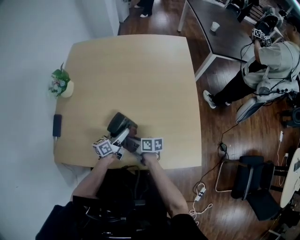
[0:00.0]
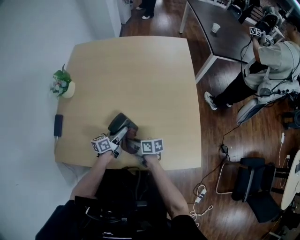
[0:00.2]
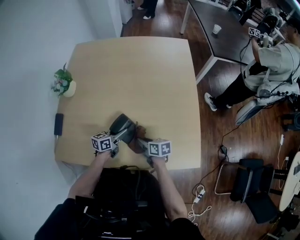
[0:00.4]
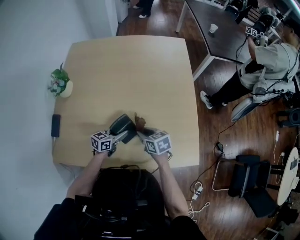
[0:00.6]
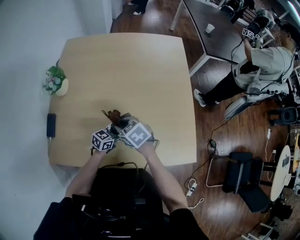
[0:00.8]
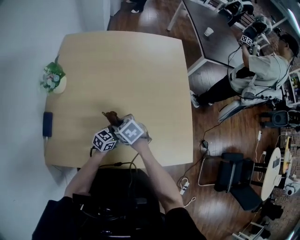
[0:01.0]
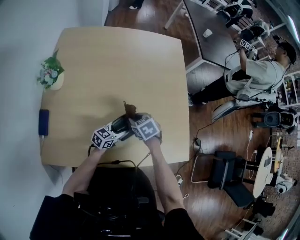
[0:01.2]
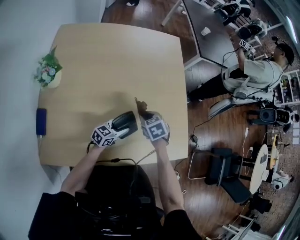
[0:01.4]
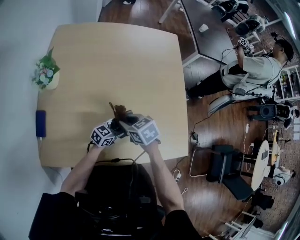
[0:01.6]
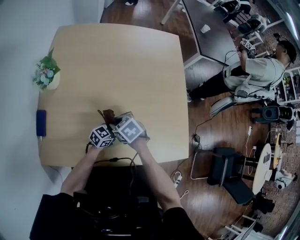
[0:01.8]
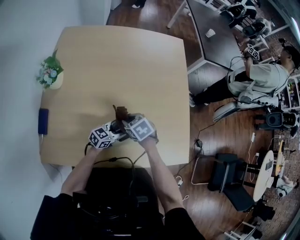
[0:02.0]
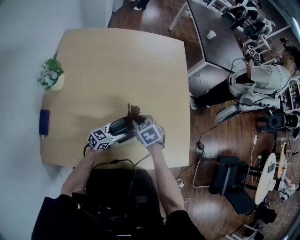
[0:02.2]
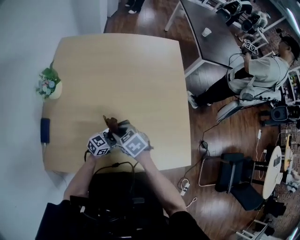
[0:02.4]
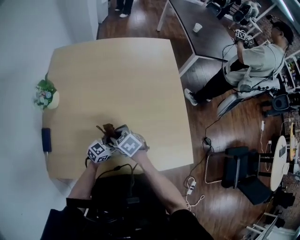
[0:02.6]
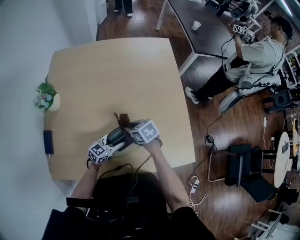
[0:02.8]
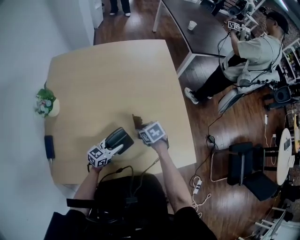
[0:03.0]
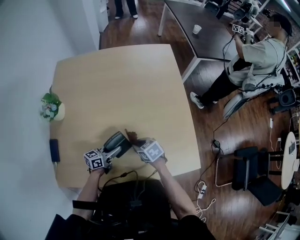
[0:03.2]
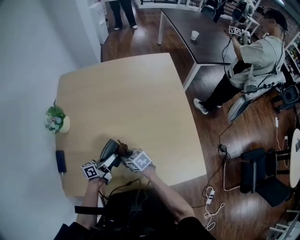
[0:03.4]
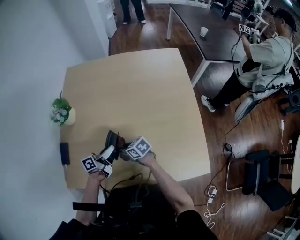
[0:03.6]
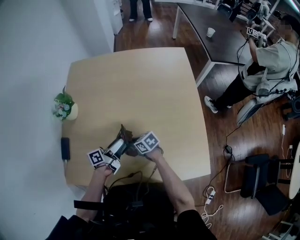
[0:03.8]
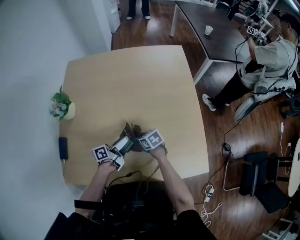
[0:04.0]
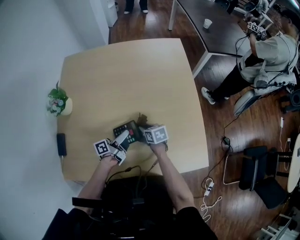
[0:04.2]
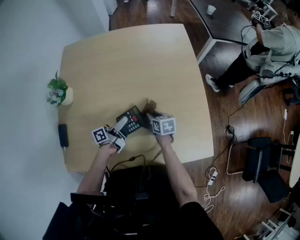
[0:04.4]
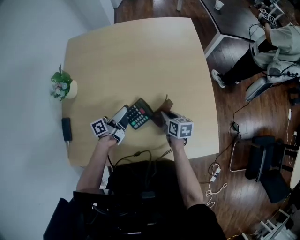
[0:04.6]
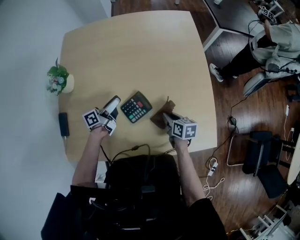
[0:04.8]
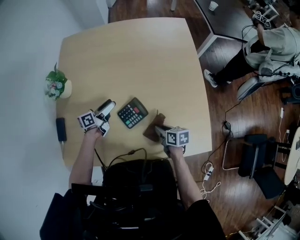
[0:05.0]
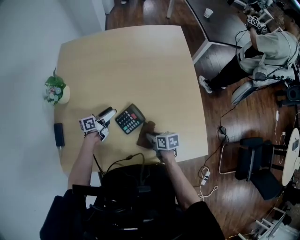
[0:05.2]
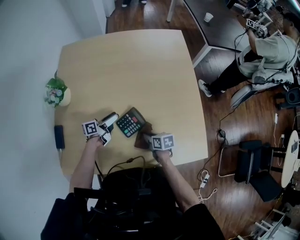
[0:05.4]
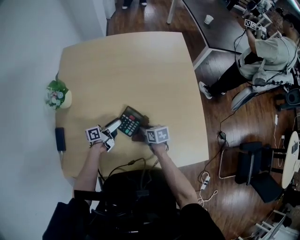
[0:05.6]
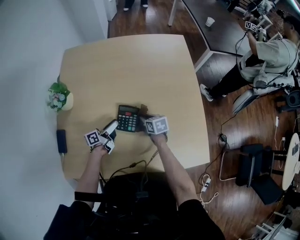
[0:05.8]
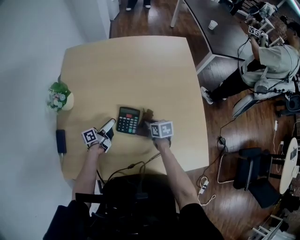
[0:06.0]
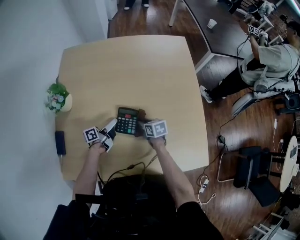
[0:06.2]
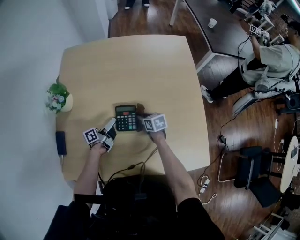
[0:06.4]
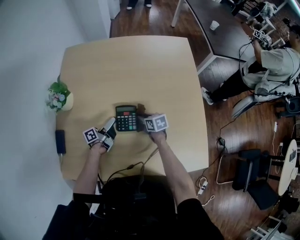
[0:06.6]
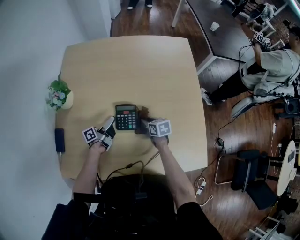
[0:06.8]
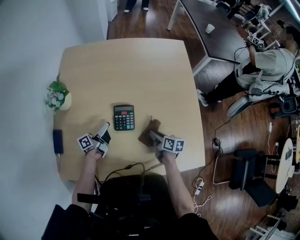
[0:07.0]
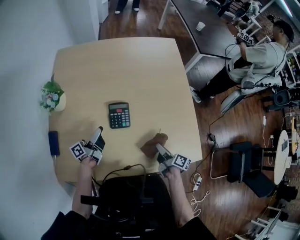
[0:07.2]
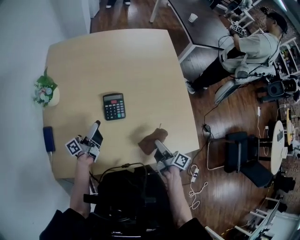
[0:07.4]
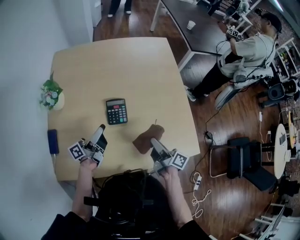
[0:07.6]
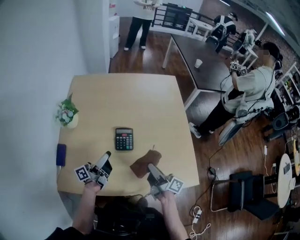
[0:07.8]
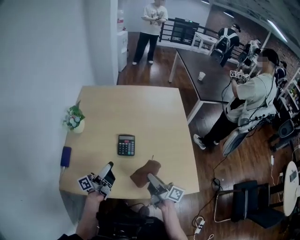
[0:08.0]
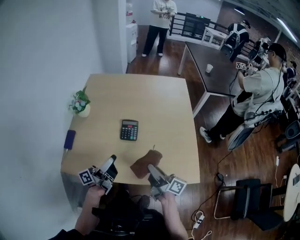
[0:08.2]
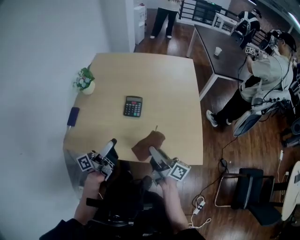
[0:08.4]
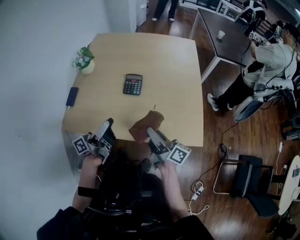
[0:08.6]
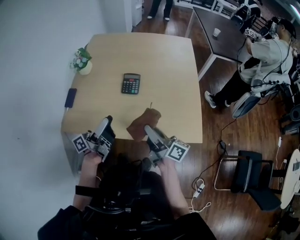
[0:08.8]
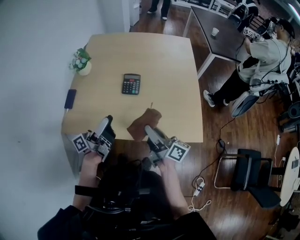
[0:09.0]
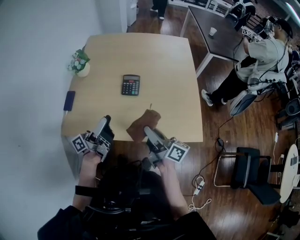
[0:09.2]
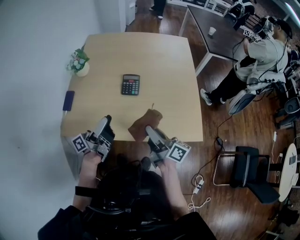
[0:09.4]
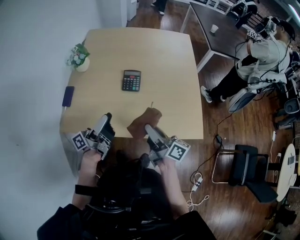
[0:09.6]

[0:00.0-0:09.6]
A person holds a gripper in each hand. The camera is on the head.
0:00.0 to 0:01.6: The right gripper swings up and down, approximately 15 cm each way, with 2 reversals, and rotates around the line of its fingers by some 40 degrees, counterclockwise from behind; the left gripper rotates about 50 degrees, and closes.
0:01.6 to 0:03.2: The left gripper changes place by some 5 cm, and swivels approximately 20 degrees; the right gripper goes up and down, about 10 cm each way, reversing 2 times.
0:03.2 to 0:04.8: The left gripper is displaced forward by roughly 10 cm, rotates approximately 30 degrees, and opens its fingers; the right gripper shifts approximately 10 cm to the right, and changes its angle by approximately 40 degrees.
0:04.8 to 0:06.4: The right gripper shifts some 15 cm forward and to the left, and rotates some 20 degrees. The left gripper shifts about 5 cm downward.
0:06.4 to 0:08.0: The right gripper moves forward and backward over approximately 25 cm, changing direction 2 times, and tips its fingers upward by some 50 degrees, while the left gripper heads upward and backward, covering some 30 cm, and swivels some 20 degrees.
0:08.0 to 0:09.6: The grippers both shift backward by roughly 10 cm.

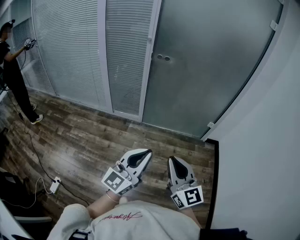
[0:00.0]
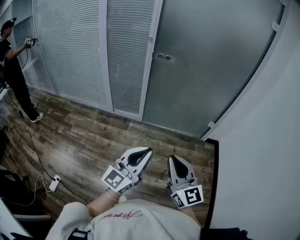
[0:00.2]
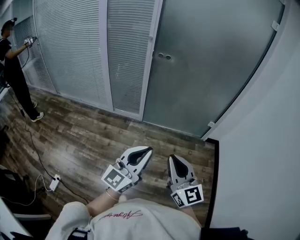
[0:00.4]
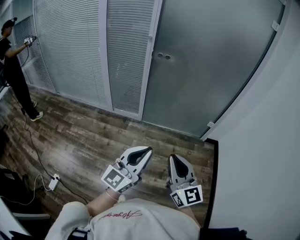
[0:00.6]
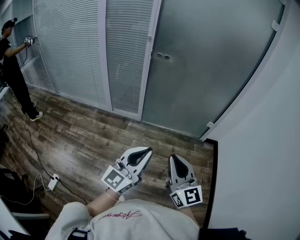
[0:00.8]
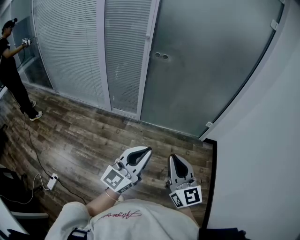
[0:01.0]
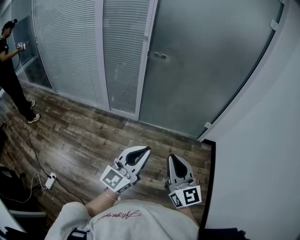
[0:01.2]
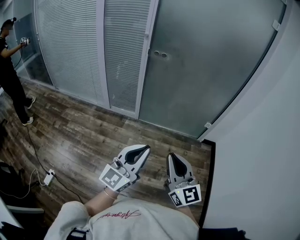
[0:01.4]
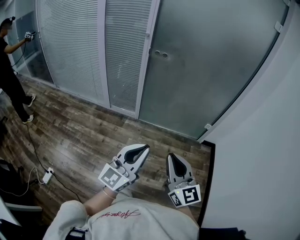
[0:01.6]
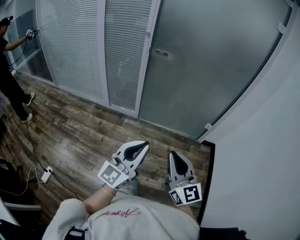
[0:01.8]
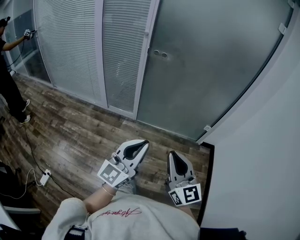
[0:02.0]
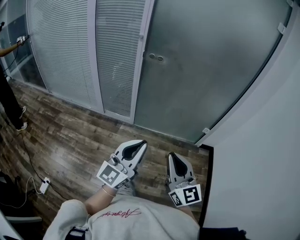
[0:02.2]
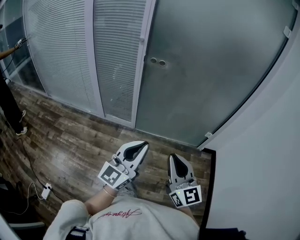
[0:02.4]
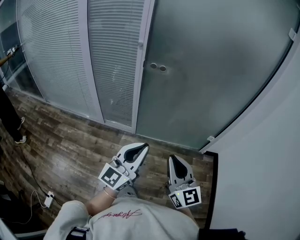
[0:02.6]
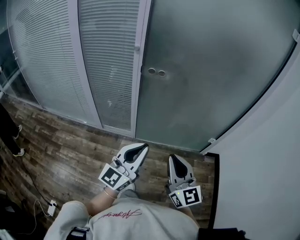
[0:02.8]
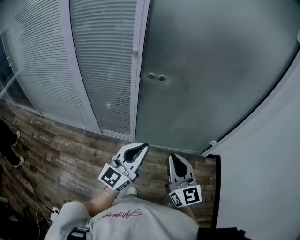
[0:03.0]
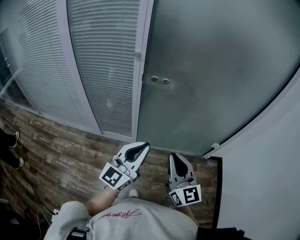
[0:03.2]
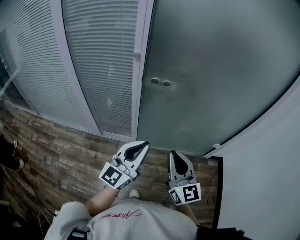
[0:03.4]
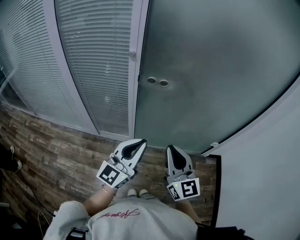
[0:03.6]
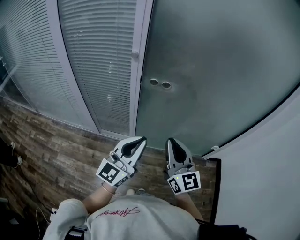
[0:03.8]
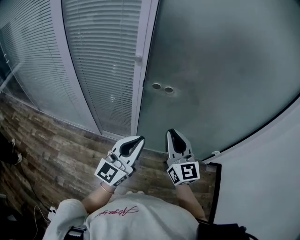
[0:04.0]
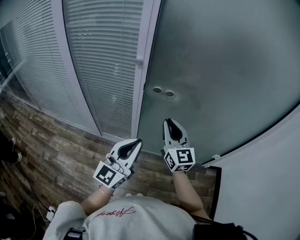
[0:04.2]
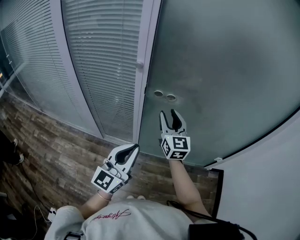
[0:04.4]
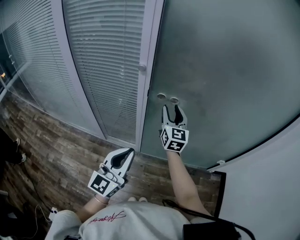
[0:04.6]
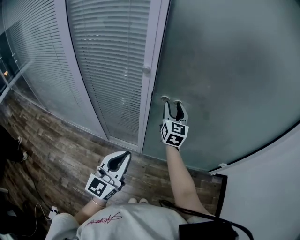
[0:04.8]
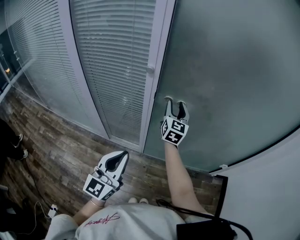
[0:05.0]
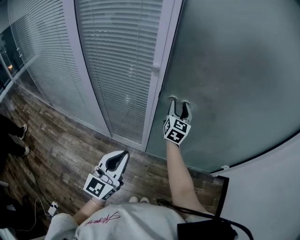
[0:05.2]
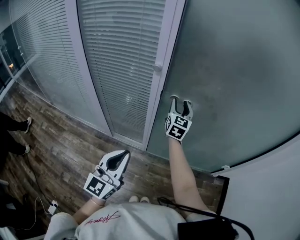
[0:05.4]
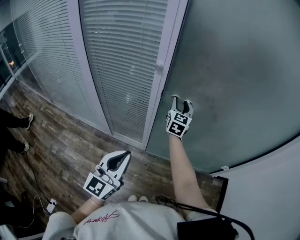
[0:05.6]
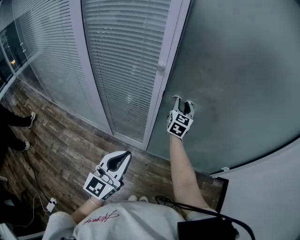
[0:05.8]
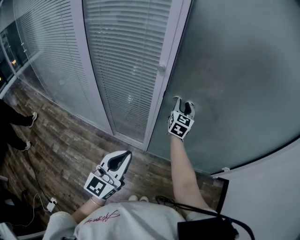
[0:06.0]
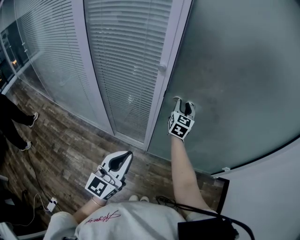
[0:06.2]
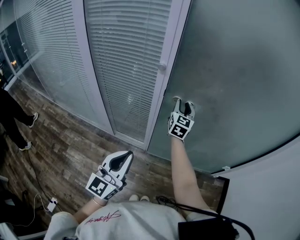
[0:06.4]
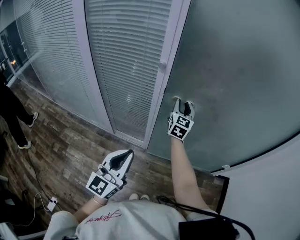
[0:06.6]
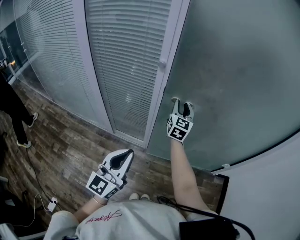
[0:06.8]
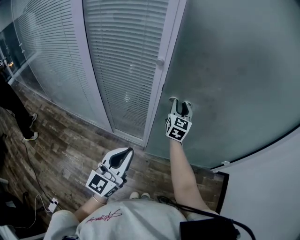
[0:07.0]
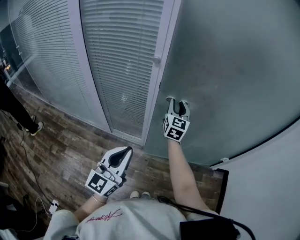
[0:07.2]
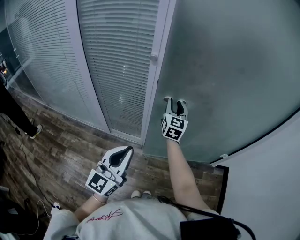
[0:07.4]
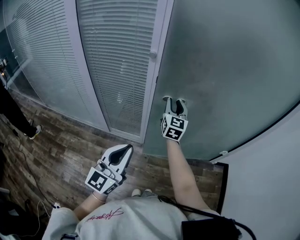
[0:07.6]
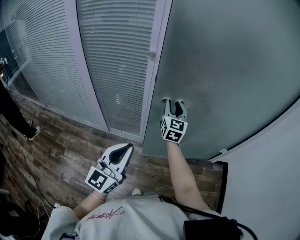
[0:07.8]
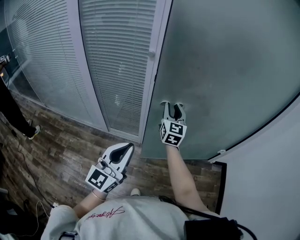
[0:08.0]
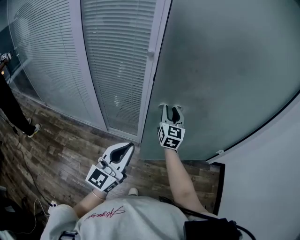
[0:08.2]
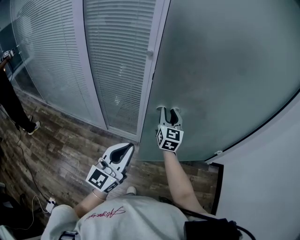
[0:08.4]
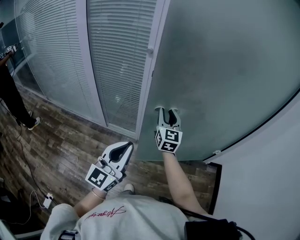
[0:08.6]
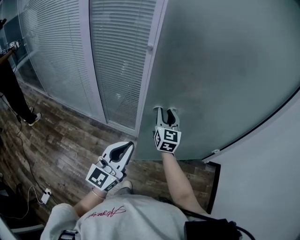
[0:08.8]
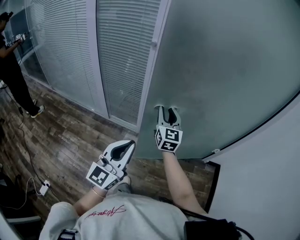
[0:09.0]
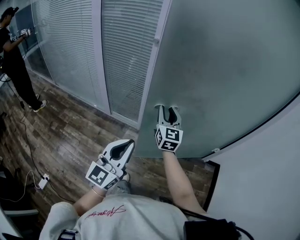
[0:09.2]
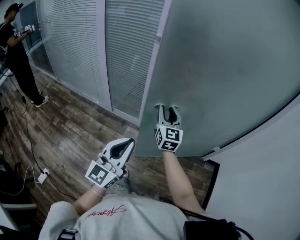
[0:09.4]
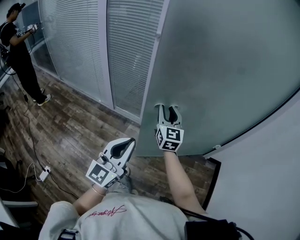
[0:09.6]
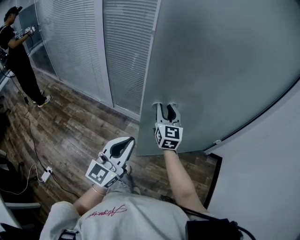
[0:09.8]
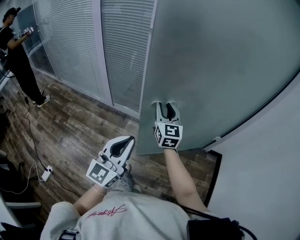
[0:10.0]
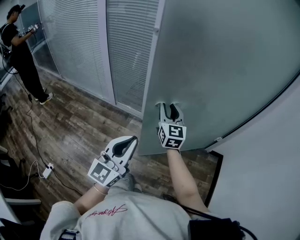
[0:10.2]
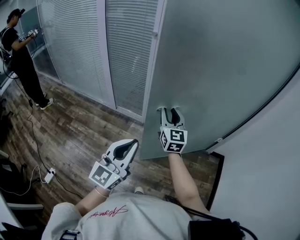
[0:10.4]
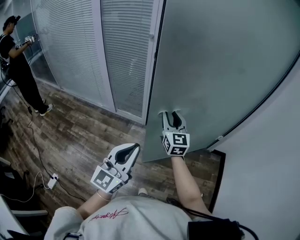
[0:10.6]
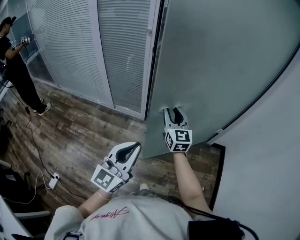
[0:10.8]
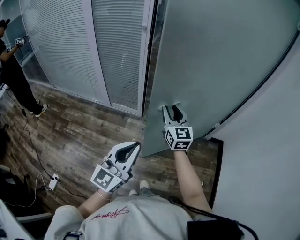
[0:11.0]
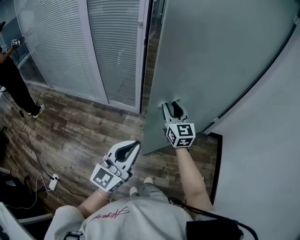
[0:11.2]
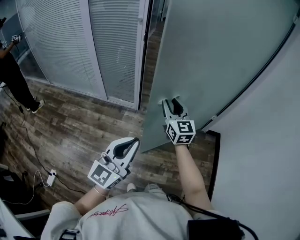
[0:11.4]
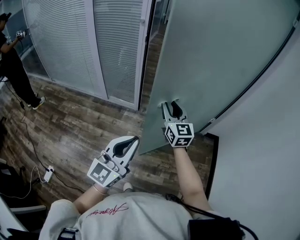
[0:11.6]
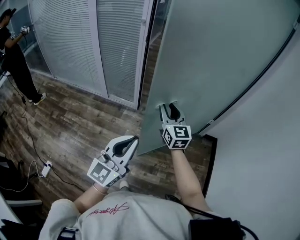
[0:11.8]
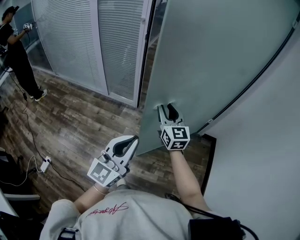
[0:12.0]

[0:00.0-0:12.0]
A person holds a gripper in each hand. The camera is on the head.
0:00.0 to 0:01.6: Both grippers travel together to the right, roughly 5 cm.
0:01.6 to 0:03.0: Both grippers move forward, about 30 cm.
0:03.0 to 0:04.4: The right gripper travels forward by about 30 cm, and opens up. The left gripper is displaced forward and to the left by approximately 15 cm.
0:04.4 to 0:06.0: The right gripper shifts about 15 cm forward. The left gripper shifts about 5 cm to the left.
0:06.0 to 0:07.6: The right gripper is displaced backward by some 10 cm, while the left gripper ends up roughly 5 cm from where it was.
0:07.6 to 0:09.0: The left gripper is displaced backward and to the right by about 15 cm; the right gripper goes about 15 cm backward.
0:09.0 to 0:10.4: The grippers both shift backward by some 15 cm.
0:10.4 to 0:12.0: Both grippers travel together backward and to the right, approximately 15 cm.

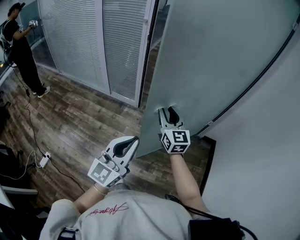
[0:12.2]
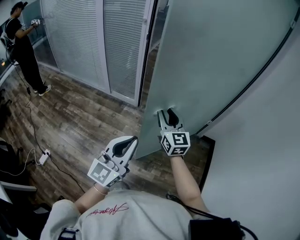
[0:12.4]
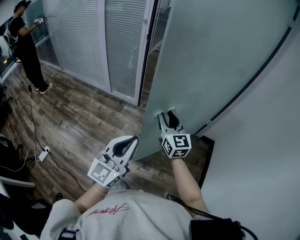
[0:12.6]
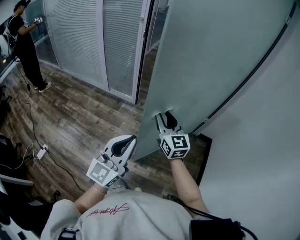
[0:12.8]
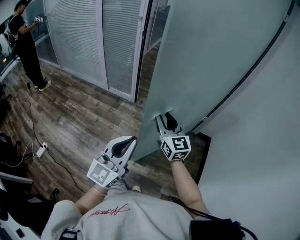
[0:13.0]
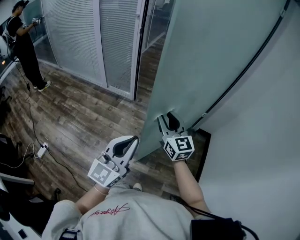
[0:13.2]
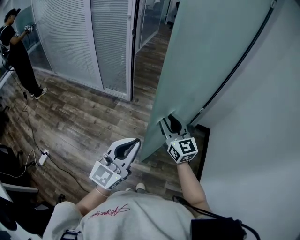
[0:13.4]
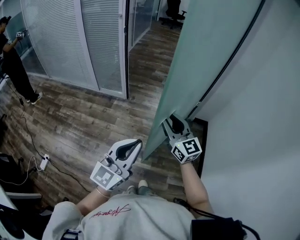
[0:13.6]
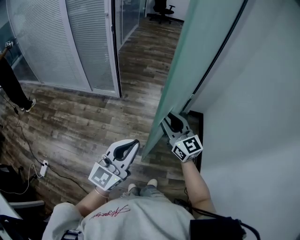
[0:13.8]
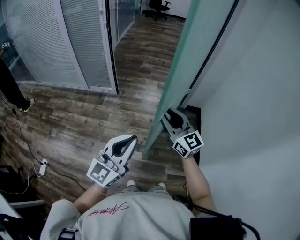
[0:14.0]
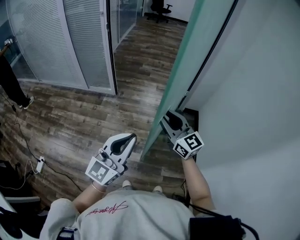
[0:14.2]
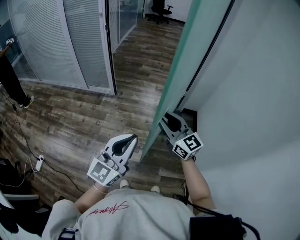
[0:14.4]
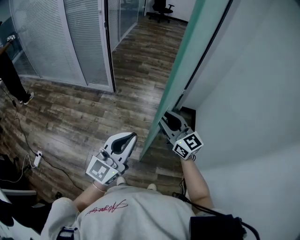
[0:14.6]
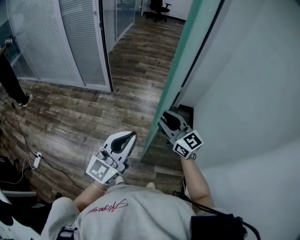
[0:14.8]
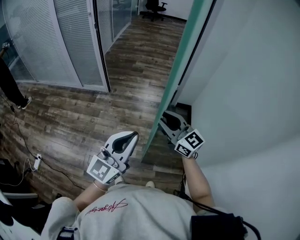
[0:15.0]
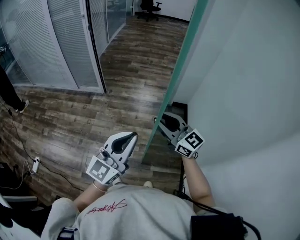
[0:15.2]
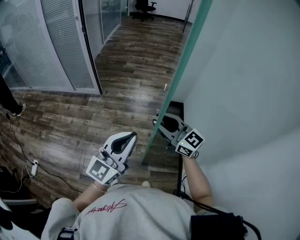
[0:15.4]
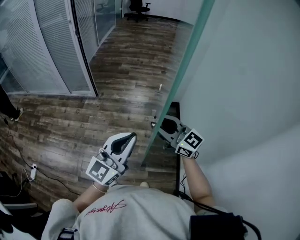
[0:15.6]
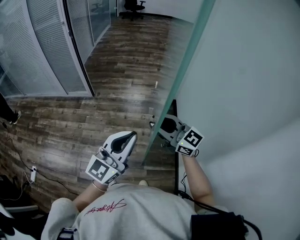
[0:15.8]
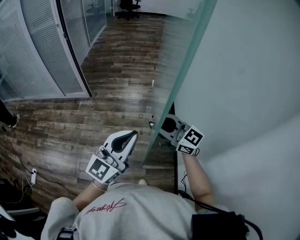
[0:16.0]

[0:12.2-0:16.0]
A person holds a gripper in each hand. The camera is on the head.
0:12.2 to 0:13.4: The grippers both shift backward and to the right by some 15 cm.
0:13.4 to 0:14.8: The two grippers go approximately 15 cm to the right and backward.
0:14.8 to 0:16.0: The right gripper moves to the right and backward, some 15 cm, while the left gripper moves to the right, approximately 15 cm.
